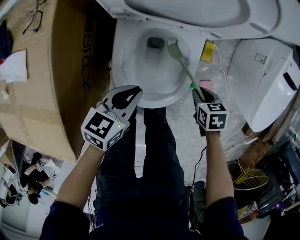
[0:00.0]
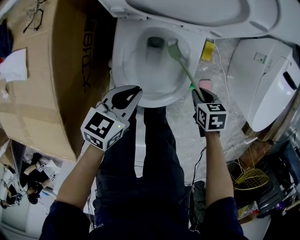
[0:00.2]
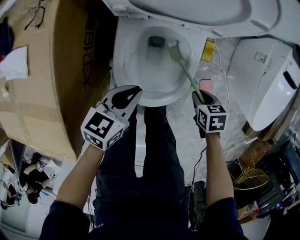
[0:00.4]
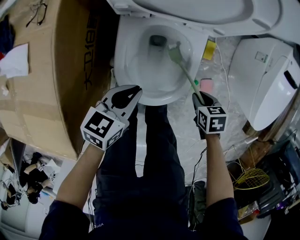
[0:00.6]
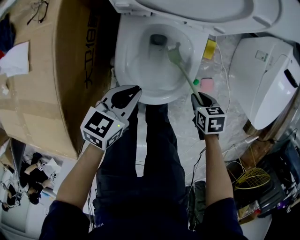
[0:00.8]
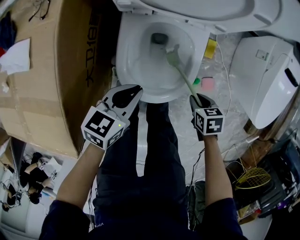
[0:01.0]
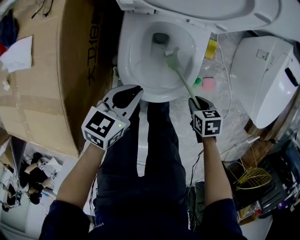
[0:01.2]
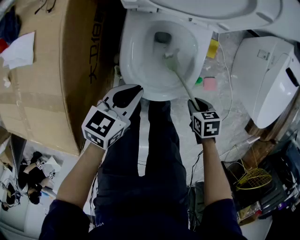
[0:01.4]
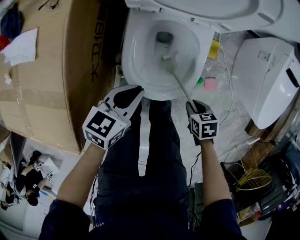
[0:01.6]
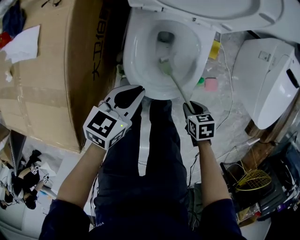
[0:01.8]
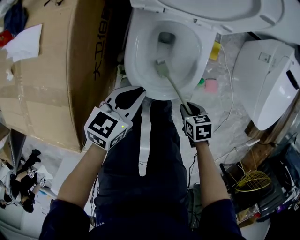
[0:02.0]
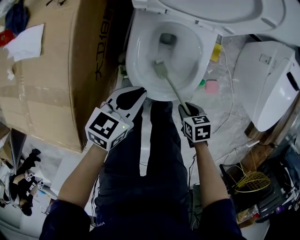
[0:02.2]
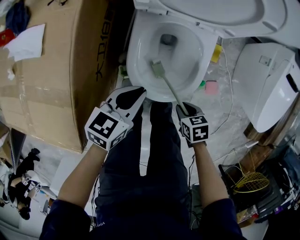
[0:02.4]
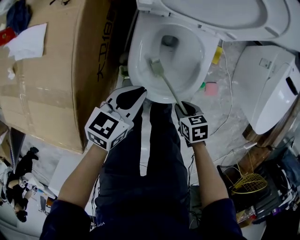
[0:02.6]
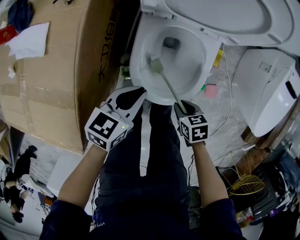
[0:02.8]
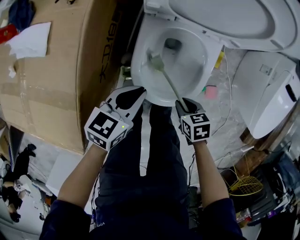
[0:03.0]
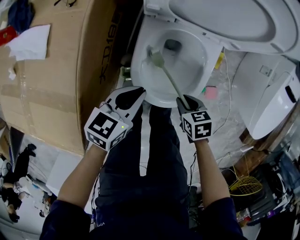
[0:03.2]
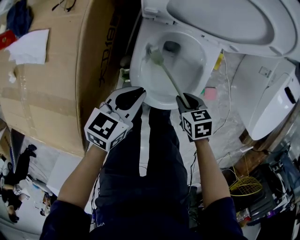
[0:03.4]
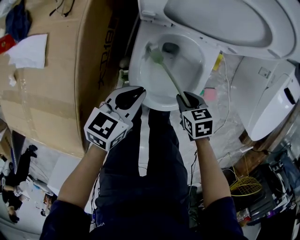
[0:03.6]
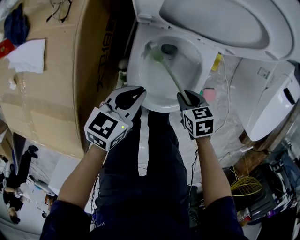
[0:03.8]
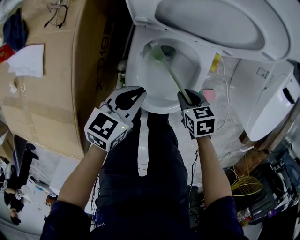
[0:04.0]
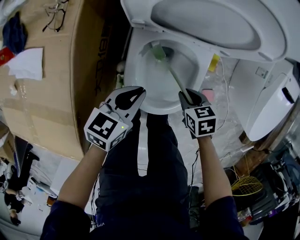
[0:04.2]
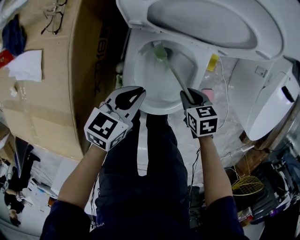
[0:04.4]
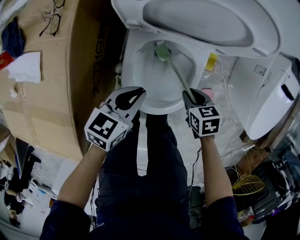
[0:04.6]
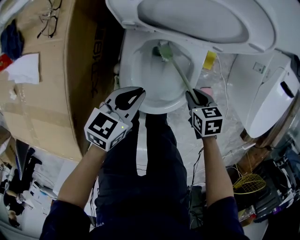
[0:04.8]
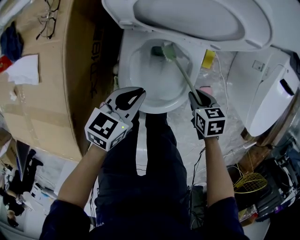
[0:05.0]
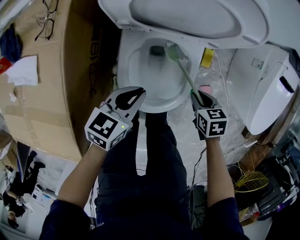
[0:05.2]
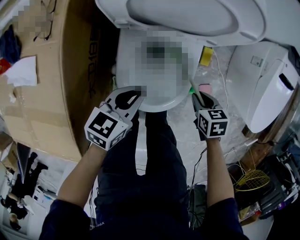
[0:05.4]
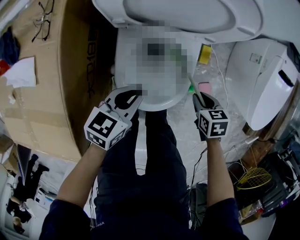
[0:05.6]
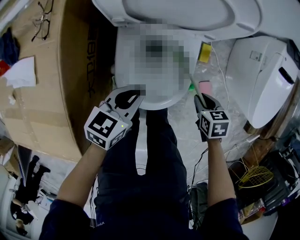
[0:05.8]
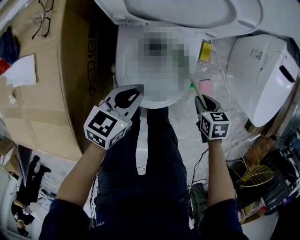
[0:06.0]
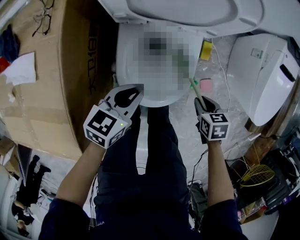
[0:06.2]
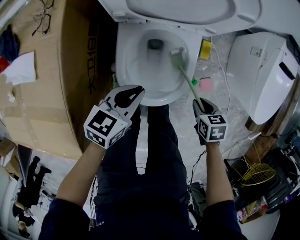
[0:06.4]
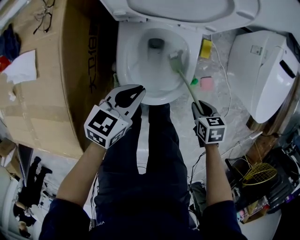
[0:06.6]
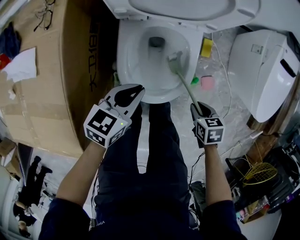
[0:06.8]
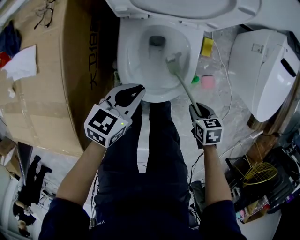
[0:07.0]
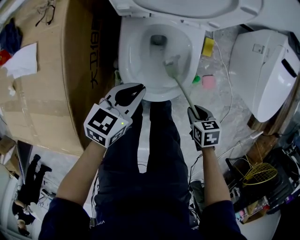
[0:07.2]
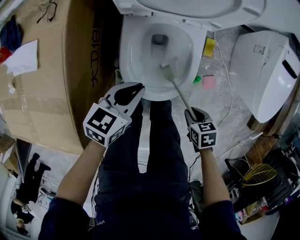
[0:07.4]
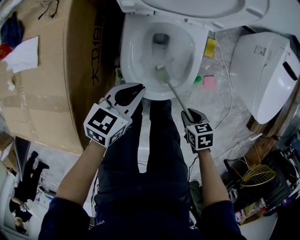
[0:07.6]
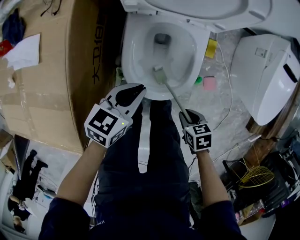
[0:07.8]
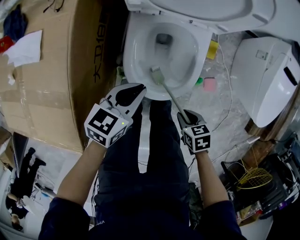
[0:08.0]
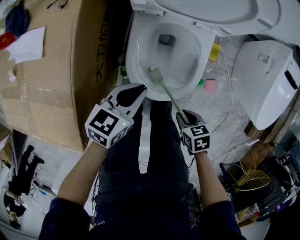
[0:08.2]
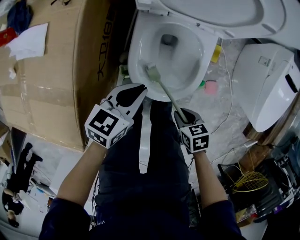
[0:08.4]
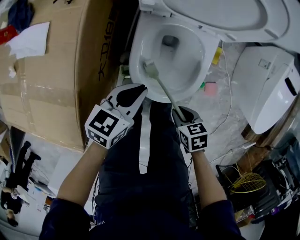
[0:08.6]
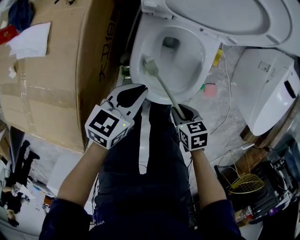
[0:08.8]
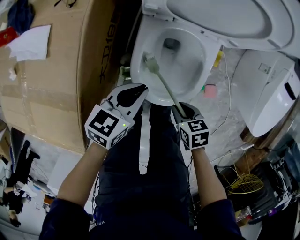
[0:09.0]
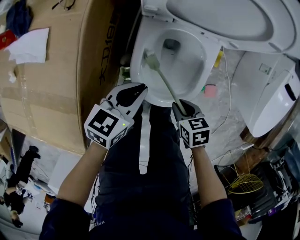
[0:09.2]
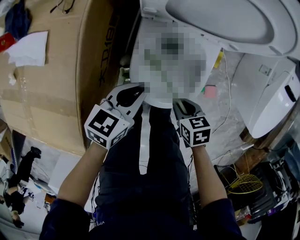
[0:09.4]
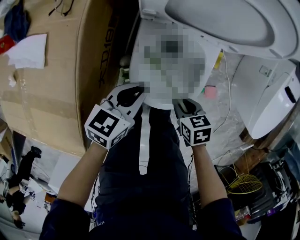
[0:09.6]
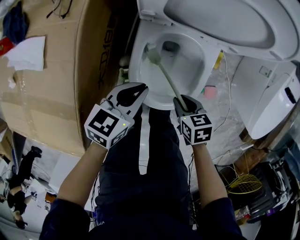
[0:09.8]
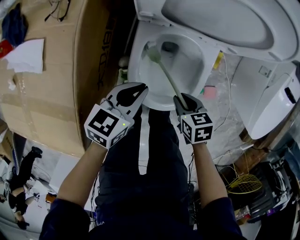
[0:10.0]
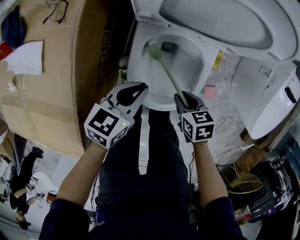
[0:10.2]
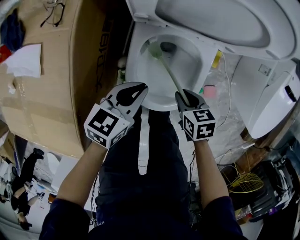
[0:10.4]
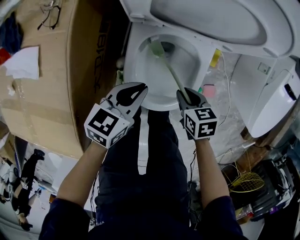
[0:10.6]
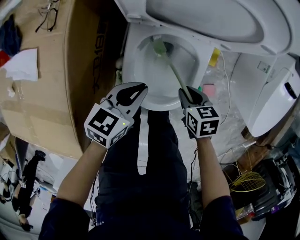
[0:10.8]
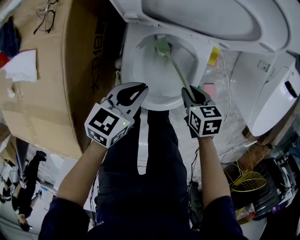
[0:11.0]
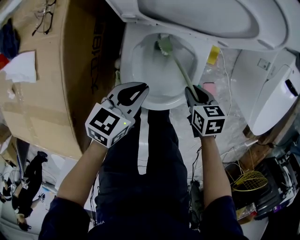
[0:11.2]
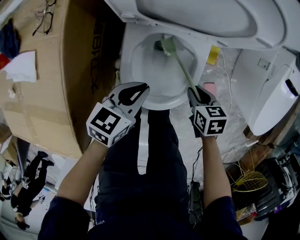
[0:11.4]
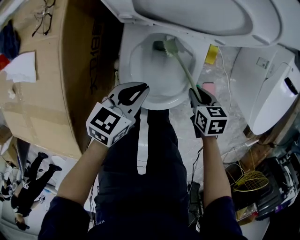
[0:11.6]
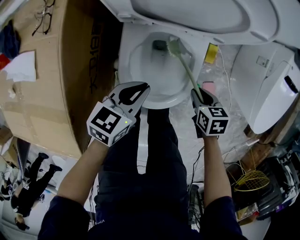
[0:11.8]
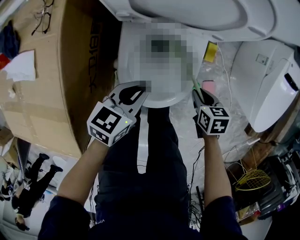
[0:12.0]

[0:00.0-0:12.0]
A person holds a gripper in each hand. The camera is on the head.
0:00.0 to 0:01.6: The left gripper moves about 5 cm; the right gripper moves approximately 10 cm.
0:01.6 to 0:03.0: The right gripper shifts by about 10 cm.
0:03.0 to 0:04.4: The left gripper goes approximately 5 cm forward, while the right gripper shifts approximately 10 cm forward.
0:04.4 to 0:06.0: The right gripper travels to the right and backward by roughly 10 cm.
0:06.0 to 0:07.6: The right gripper changes place by approximately 15 cm.
0:07.6 to 0:09.0: The right gripper moves approximately 10 cm.
0:09.0 to 0:10.4: The right gripper is displaced forward by some 10 cm.
0:10.4 to 0:12.0: The right gripper heads to the right, covering some 10 cm.

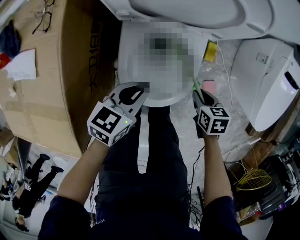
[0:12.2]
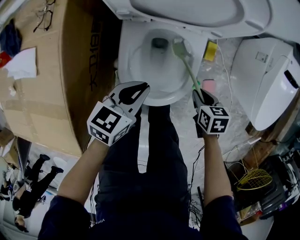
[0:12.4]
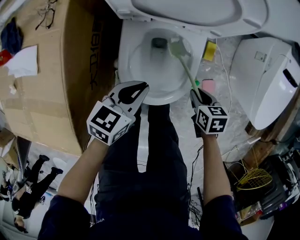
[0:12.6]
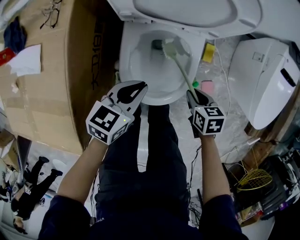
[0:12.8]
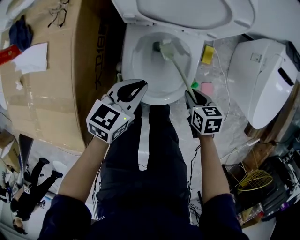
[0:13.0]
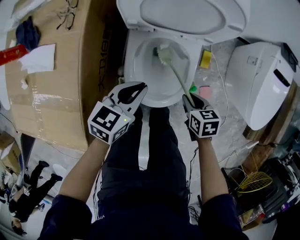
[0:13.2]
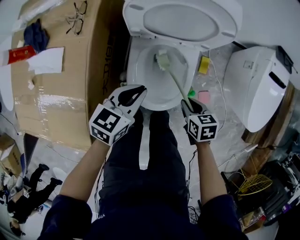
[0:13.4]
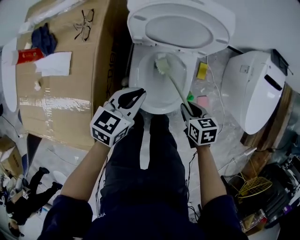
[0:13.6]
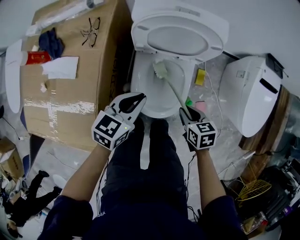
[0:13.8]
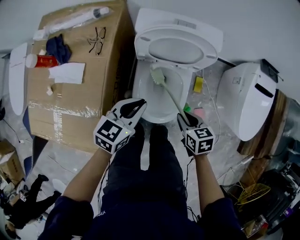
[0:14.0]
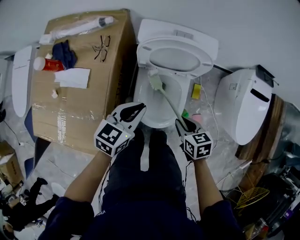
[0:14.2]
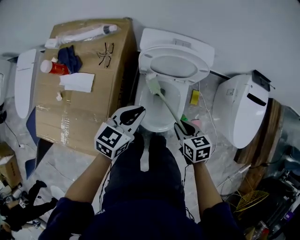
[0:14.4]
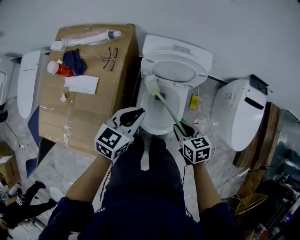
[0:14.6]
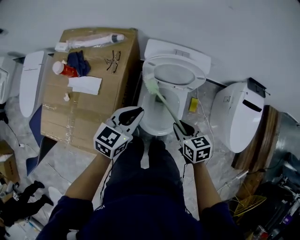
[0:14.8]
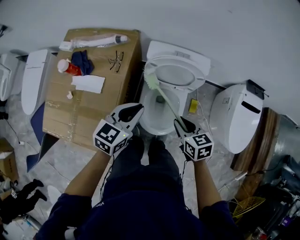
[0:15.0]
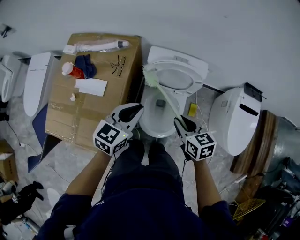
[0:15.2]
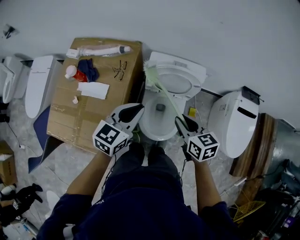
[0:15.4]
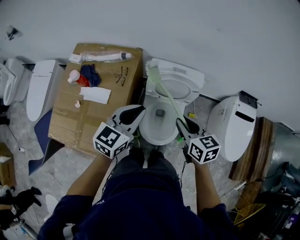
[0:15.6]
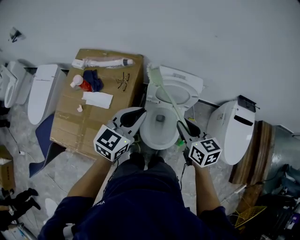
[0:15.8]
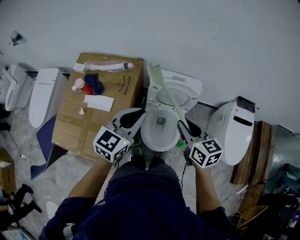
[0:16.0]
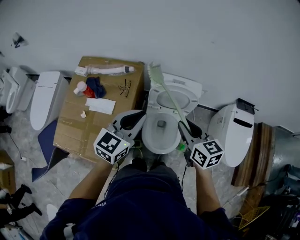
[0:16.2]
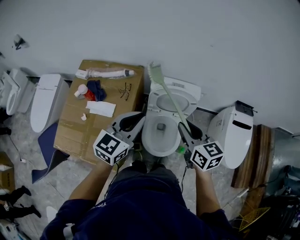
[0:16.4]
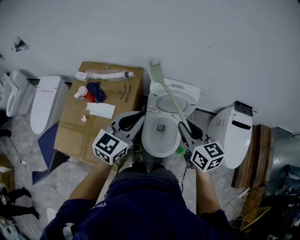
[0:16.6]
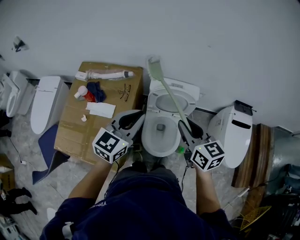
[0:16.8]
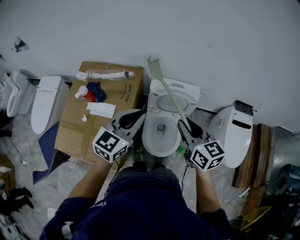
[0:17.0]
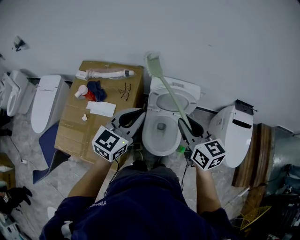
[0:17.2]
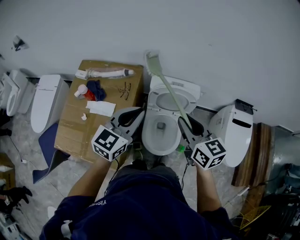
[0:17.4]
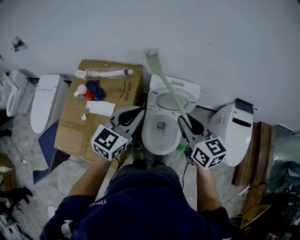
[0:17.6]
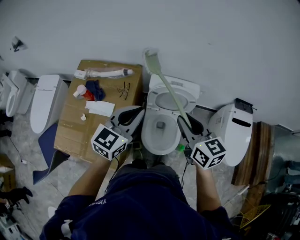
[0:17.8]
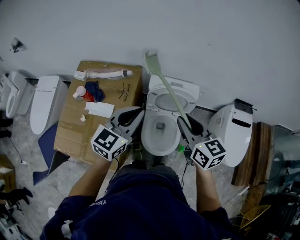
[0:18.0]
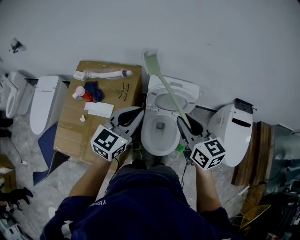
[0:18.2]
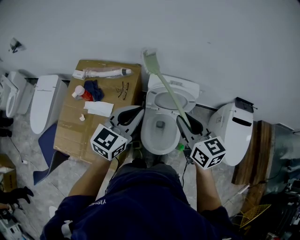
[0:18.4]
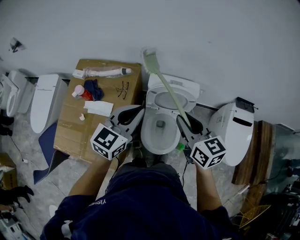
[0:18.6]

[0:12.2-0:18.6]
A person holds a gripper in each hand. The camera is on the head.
0:12.2 to 0:13.8: The left gripper shifts roughly 15 cm upward; the right gripper heads upward and to the left, covering some 15 cm.
0:13.8 to 0:15.4: The grippers both shift upward by approximately 25 cm. The right gripper changes its angle by approximately 20 degrees.
0:15.4 to 0:17.0: Both grippers move upward, about 15 cm.
0:17.0 to 0:18.6: The grippers make only small movements.

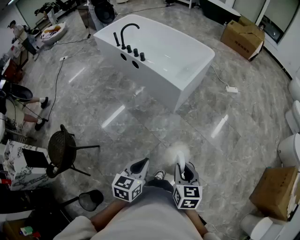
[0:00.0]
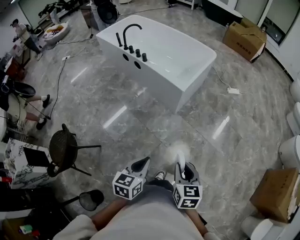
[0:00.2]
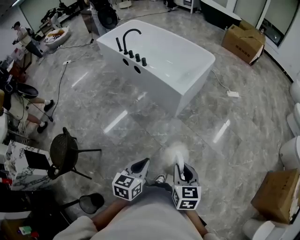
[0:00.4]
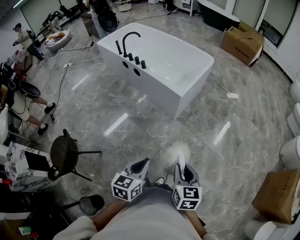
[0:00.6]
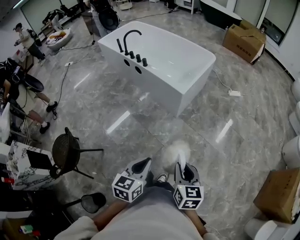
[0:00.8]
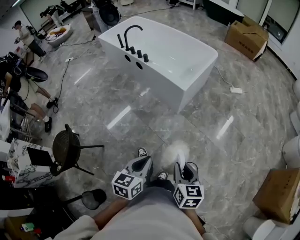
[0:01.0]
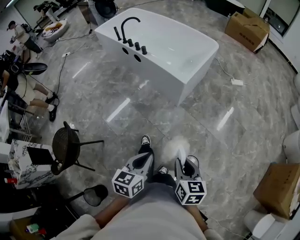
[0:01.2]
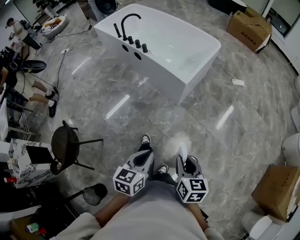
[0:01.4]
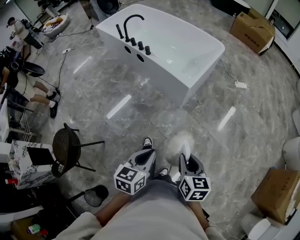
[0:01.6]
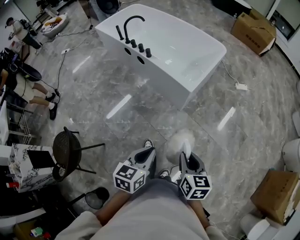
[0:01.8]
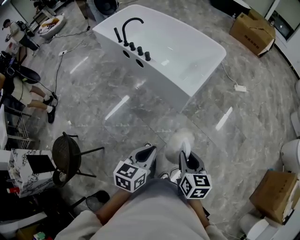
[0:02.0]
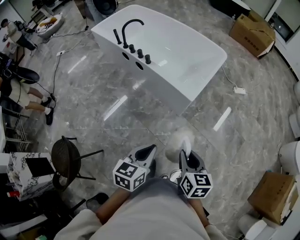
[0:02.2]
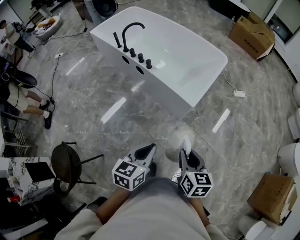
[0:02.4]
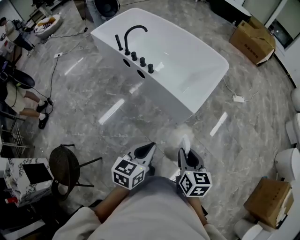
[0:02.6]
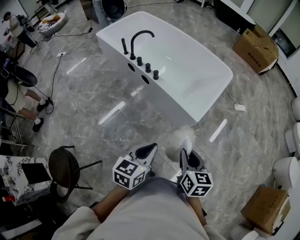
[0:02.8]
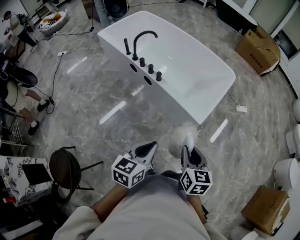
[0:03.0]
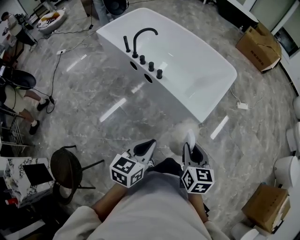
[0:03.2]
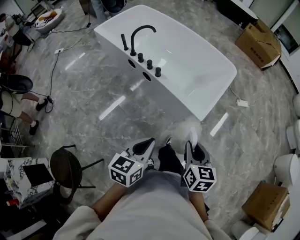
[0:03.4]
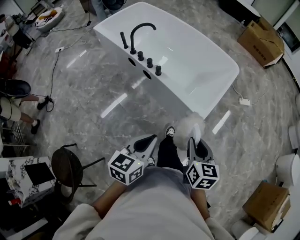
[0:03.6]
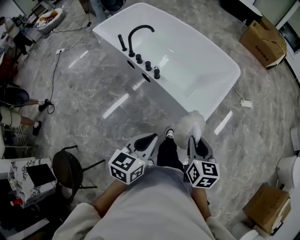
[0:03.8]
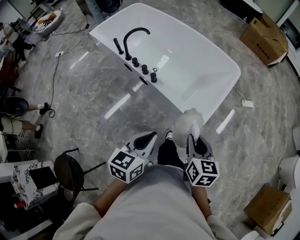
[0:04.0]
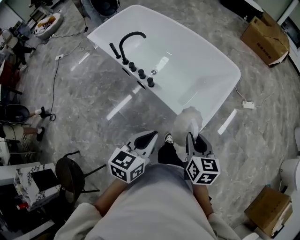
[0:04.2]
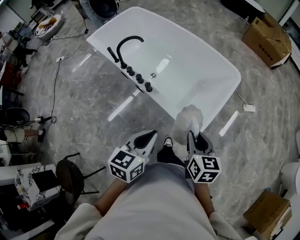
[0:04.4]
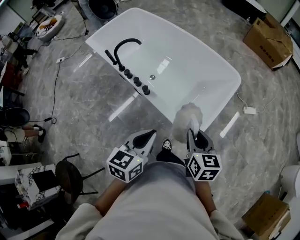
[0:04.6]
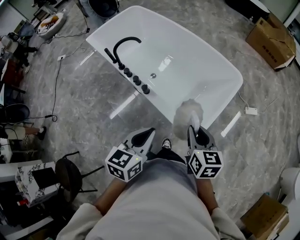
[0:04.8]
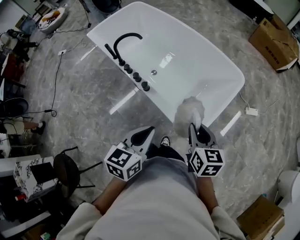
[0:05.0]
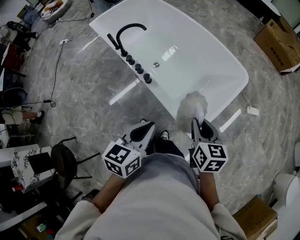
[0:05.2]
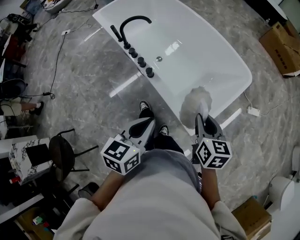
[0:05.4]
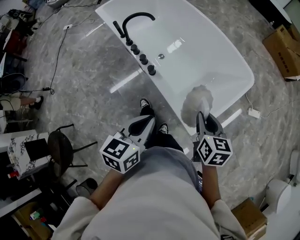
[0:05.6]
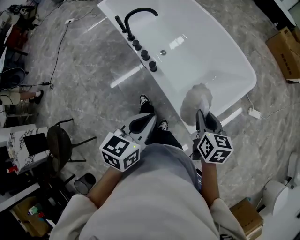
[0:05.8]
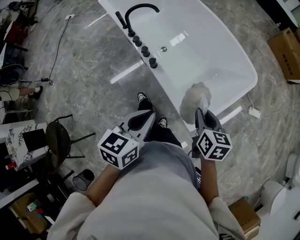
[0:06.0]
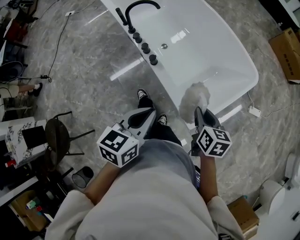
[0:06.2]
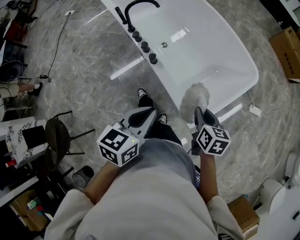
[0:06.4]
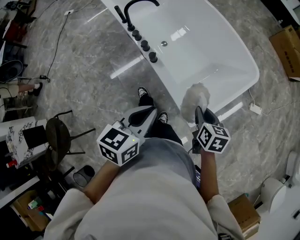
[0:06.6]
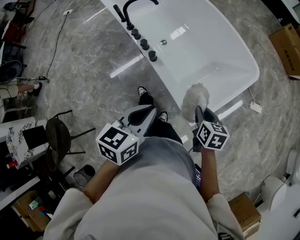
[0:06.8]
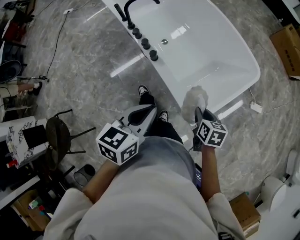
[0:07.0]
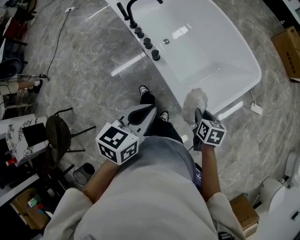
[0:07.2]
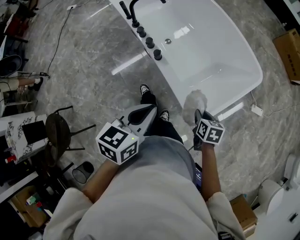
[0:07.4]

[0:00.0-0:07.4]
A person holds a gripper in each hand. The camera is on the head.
0:00.0 to 0:01.4: The left gripper moves some 5 cm.
0:01.4 to 0:03.0: The grippers both shift forward and to the left by about 35 cm.
0:03.0 to 0:04.4: The grippers both shift forward by roughly 25 cm.
0:04.4 to 0:06.0: The right gripper goes some 15 cm forward and downward. Meanwhile the left gripper is displaced forward by about 5 cm.
0:06.0 to 0:07.4: The right gripper travels downward by about 15 cm.
